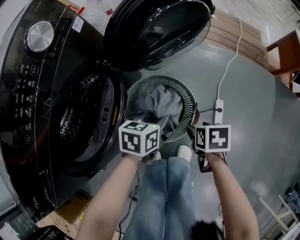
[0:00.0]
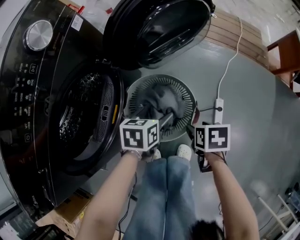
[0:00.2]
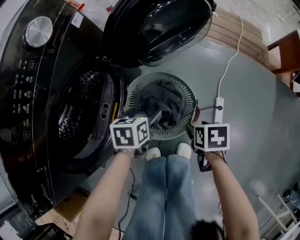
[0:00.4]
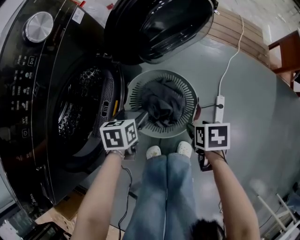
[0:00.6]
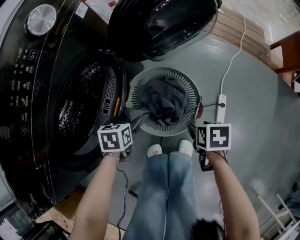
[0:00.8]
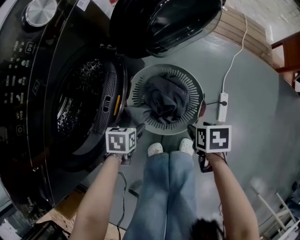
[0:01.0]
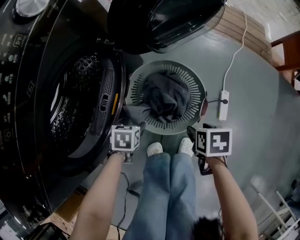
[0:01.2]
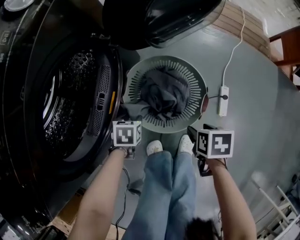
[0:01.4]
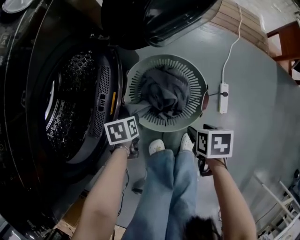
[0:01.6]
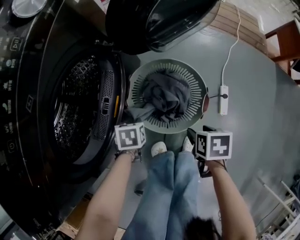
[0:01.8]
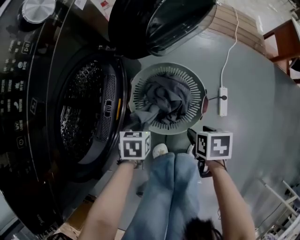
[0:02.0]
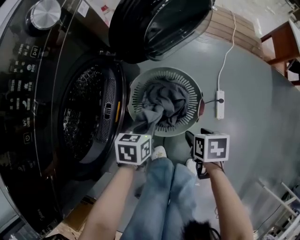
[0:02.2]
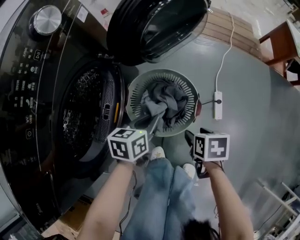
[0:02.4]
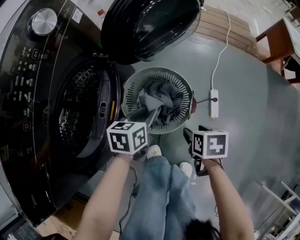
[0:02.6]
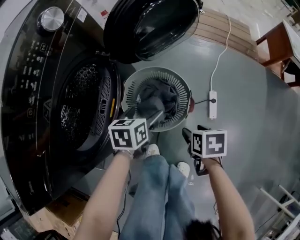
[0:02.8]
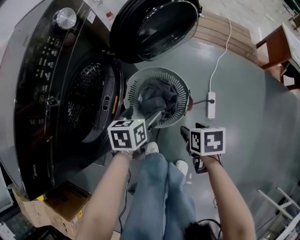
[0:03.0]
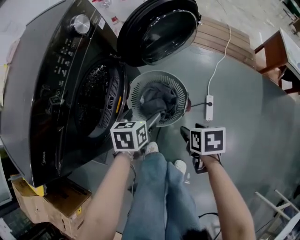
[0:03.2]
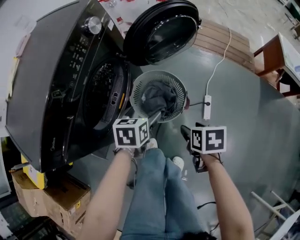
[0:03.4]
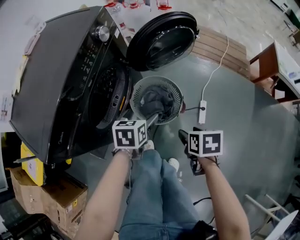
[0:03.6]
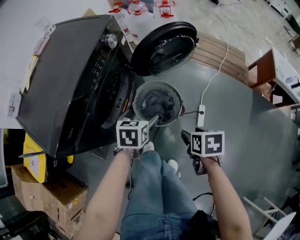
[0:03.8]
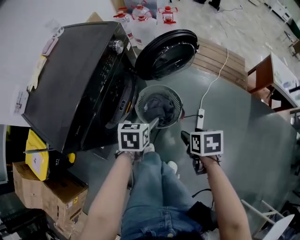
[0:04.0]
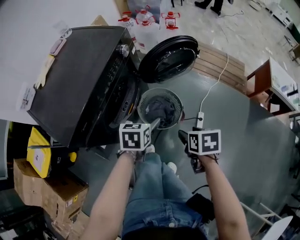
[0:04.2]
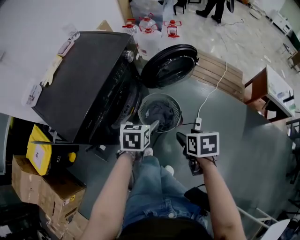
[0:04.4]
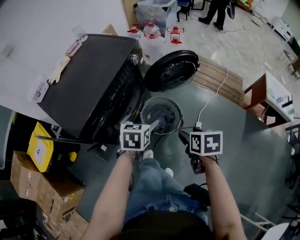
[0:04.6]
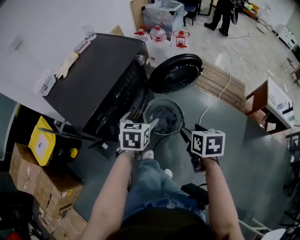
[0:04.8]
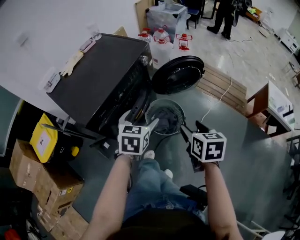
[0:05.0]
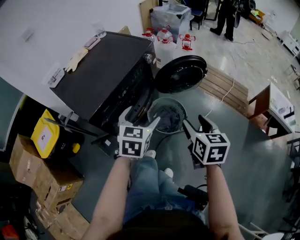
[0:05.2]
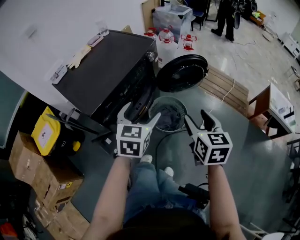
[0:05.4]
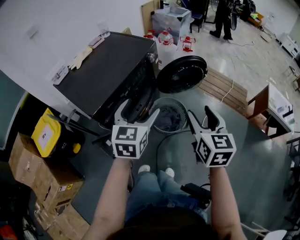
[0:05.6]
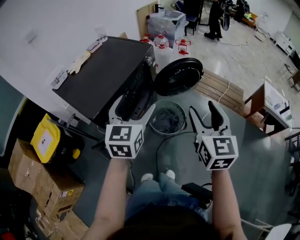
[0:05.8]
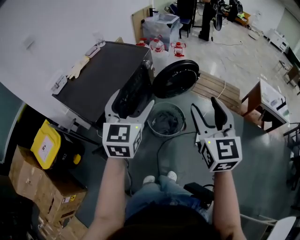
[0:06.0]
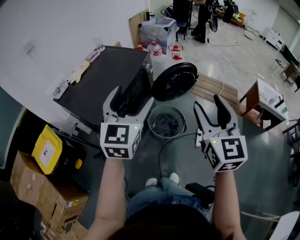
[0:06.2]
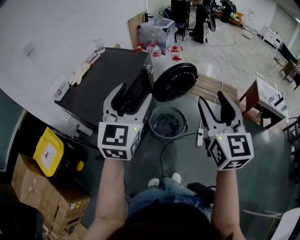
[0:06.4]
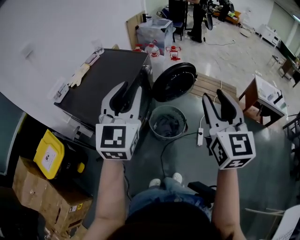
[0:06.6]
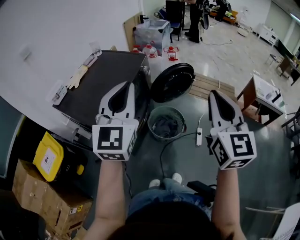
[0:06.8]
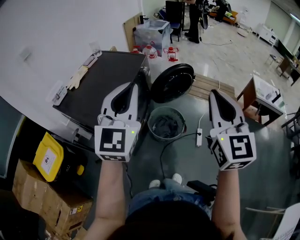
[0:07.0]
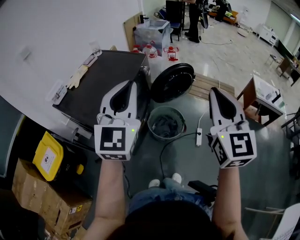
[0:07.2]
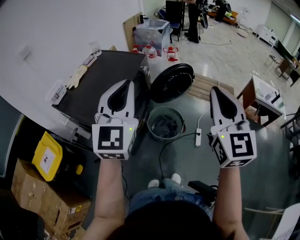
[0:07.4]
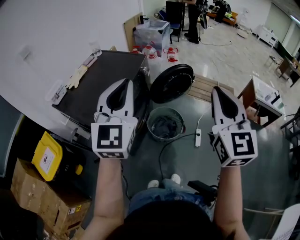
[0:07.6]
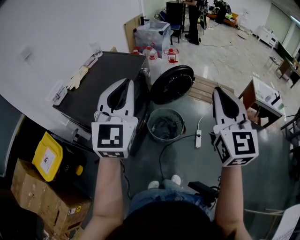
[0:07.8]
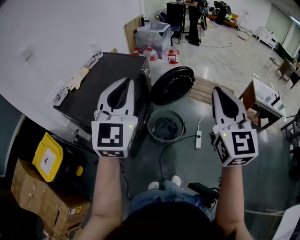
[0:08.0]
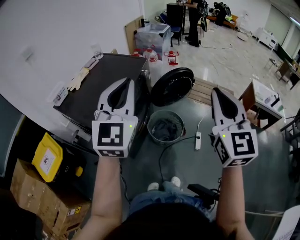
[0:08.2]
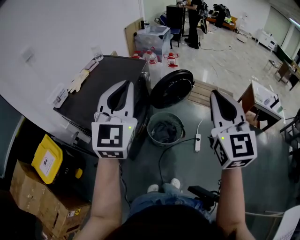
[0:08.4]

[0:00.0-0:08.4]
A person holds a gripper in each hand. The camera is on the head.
0:00.0 to 0:01.4: The right gripper travels downward and backward by approximately 5 cm, while the left gripper heads to the left and downward, covering roughly 25 cm, swivels approximately 30 degrees, and opens and closes again.
0:01.4 to 0:02.8: The left gripper shifts some 15 cm upward, turns by roughly 20 degrees, and opens. Meanwhile the right gripper is displaced upward by some 5 cm.
0:02.8 to 0:04.2: Both grippers travel together upward, approximately 25 cm.
0:04.2 to 0:05.6: The right gripper heads upward, covering approximately 25 cm, and tips its fingers upward by some 40 degrees. Meanwhile the left gripper is displaced upward and backward by some 25 cm, and points its fingers roughly 30 degrees further upward.
0:05.6 to 0:07.0: Both grippers move upward, about 15 cm. The right gripper turns by roughly 30 degrees, and closes; the left gripper swivels approximately 30 degrees, and closes.
0:07.0 to 0:08.4: The grippers stay close to where they were, moving slightly.

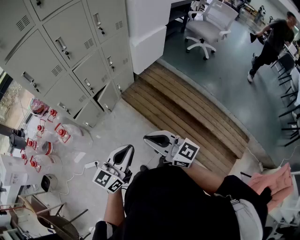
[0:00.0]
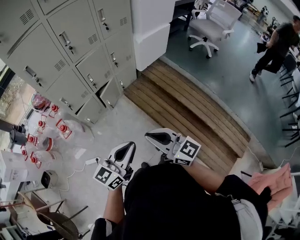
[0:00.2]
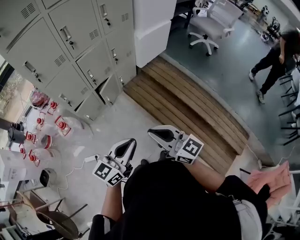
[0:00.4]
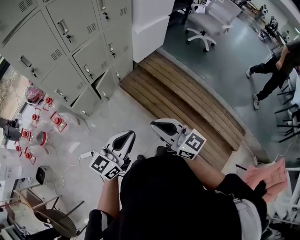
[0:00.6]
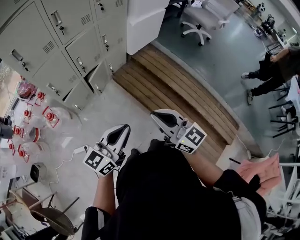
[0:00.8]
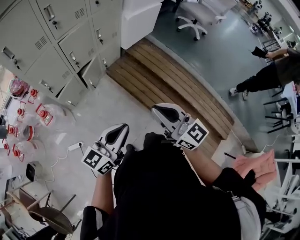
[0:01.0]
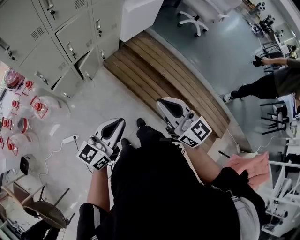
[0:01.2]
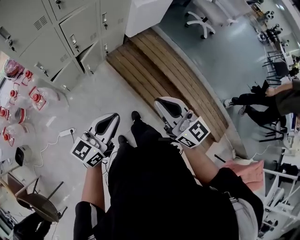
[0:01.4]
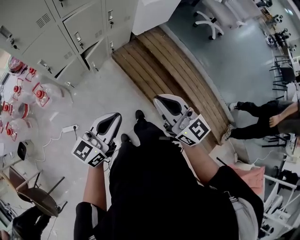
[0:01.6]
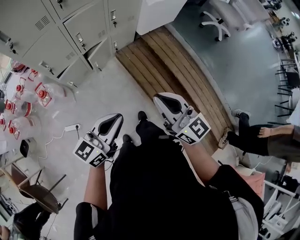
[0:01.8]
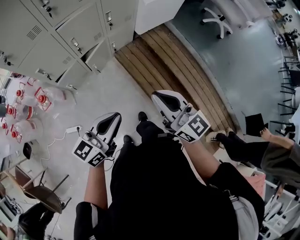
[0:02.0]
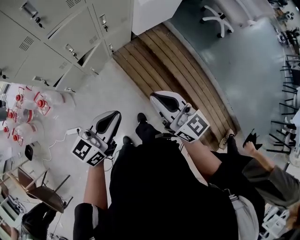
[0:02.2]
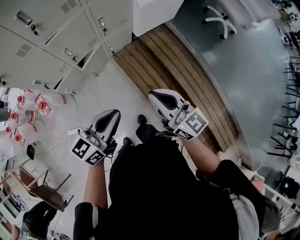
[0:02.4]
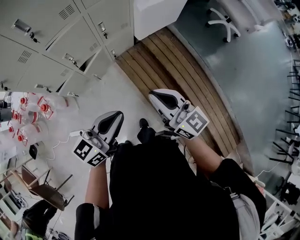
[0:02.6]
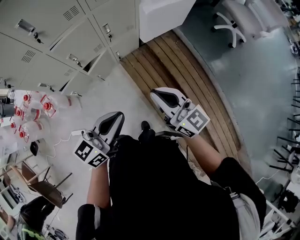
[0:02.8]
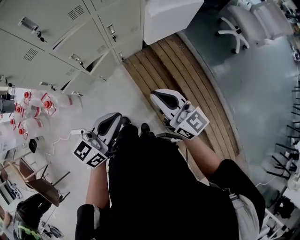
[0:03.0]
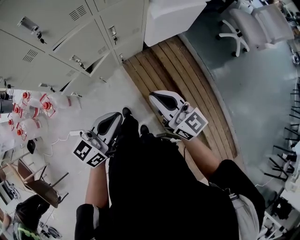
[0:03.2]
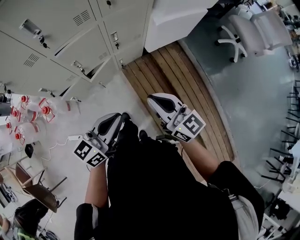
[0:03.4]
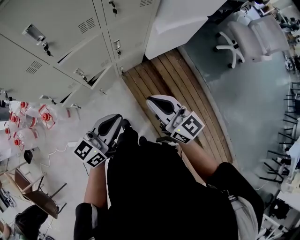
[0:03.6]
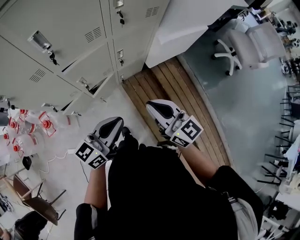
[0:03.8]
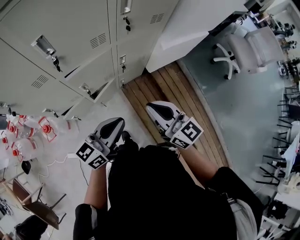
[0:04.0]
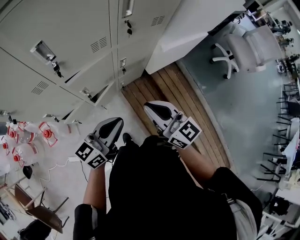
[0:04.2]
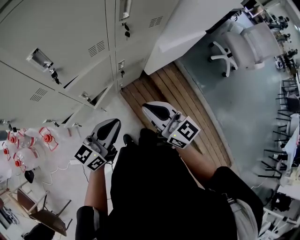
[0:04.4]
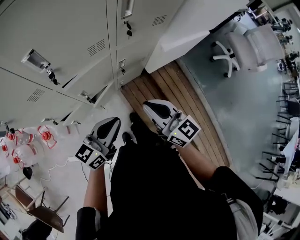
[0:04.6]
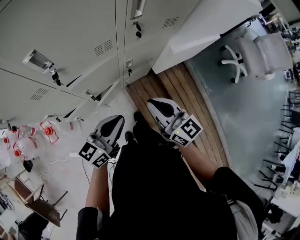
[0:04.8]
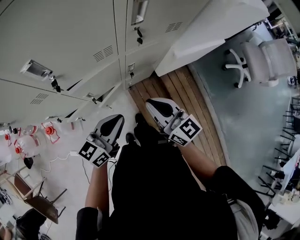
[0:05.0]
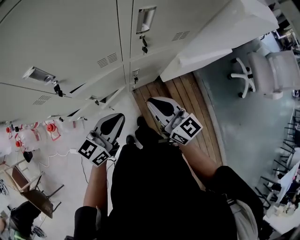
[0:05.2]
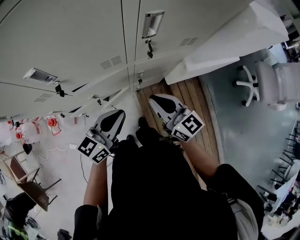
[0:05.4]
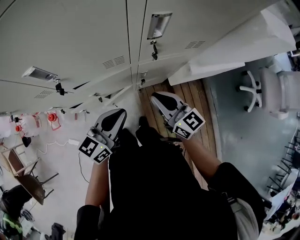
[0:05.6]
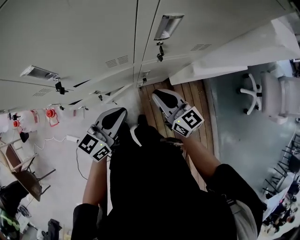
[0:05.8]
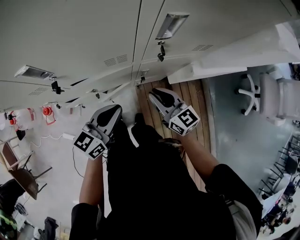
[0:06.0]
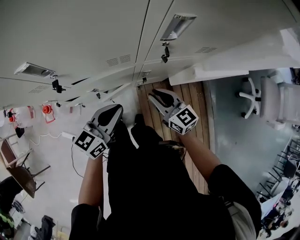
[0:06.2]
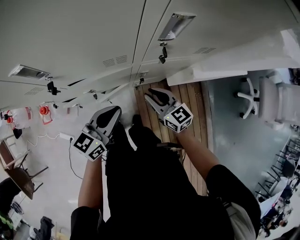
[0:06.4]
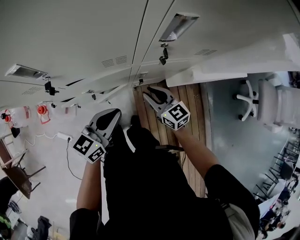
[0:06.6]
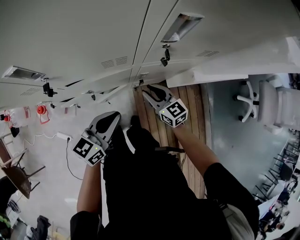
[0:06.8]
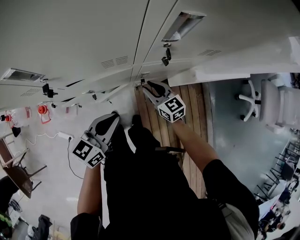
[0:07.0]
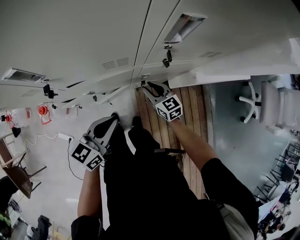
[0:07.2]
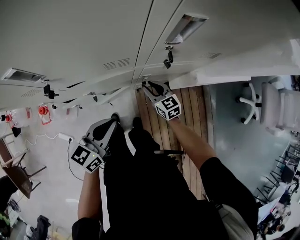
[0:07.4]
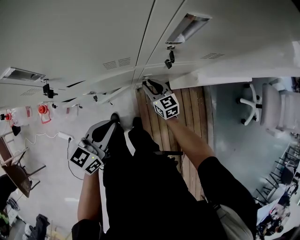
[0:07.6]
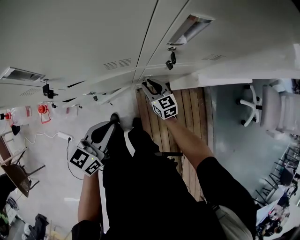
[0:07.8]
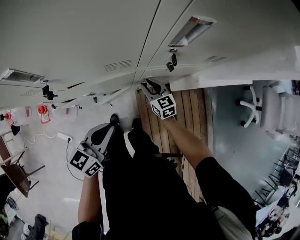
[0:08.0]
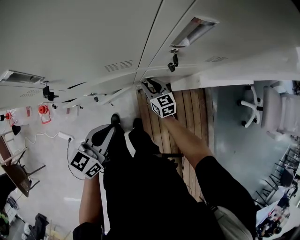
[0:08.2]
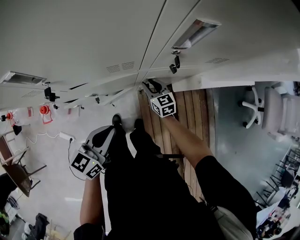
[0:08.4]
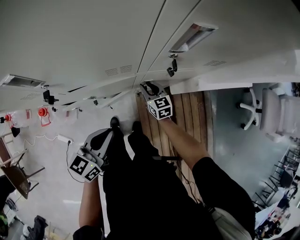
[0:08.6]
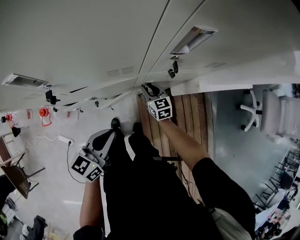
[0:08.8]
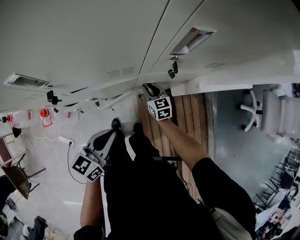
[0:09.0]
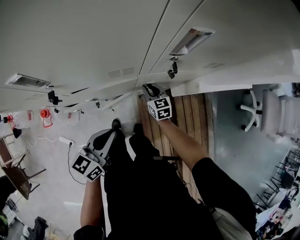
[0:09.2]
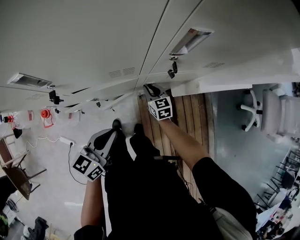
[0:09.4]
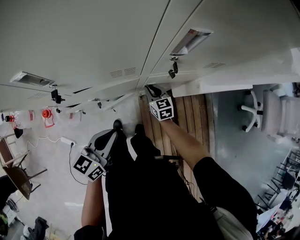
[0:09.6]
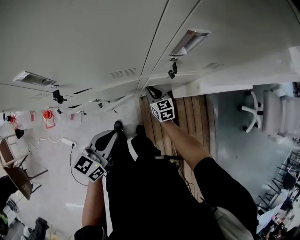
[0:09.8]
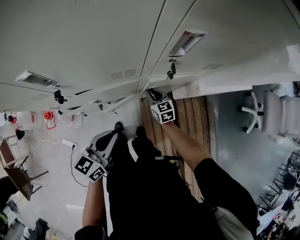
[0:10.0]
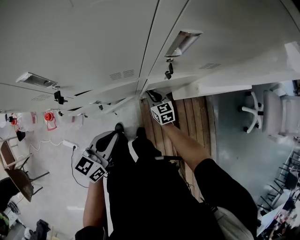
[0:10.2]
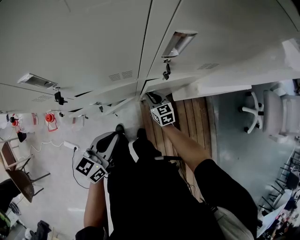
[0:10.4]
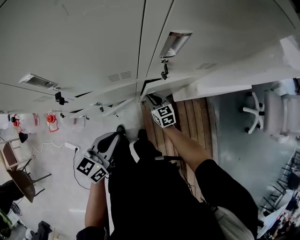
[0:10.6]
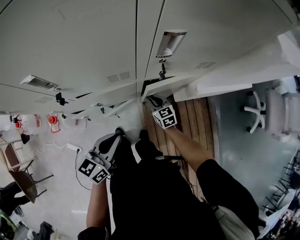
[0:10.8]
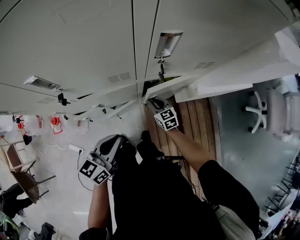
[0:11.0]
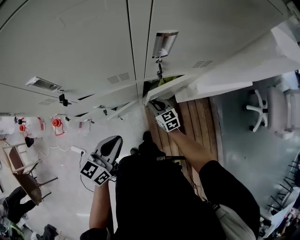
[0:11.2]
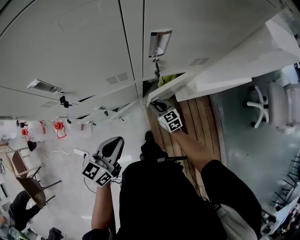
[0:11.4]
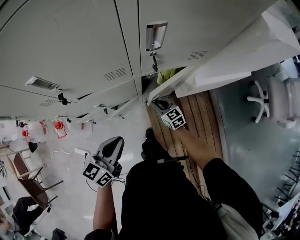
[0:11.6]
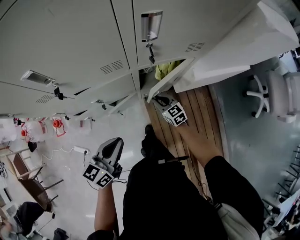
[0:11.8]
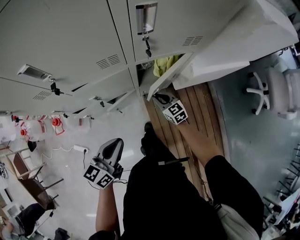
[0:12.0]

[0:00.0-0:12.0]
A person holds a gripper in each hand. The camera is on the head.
0:00.0 to 0:01.6: The two grippers go approximately 10 cm forward.
0:01.6 to 0:03.0: Both grippers travel together forward and to the right, roughly 25 cm.
0:03.0 to 0:04.4: The two grippers go roughly 25 cm forward and to the left.
0:04.4 to 0:06.0: The right gripper shifts about 25 cm forward and downward, while the left gripper heads forward, covering approximately 15 cm, and rotates about 20 degrees.
0:06.0 to 0:07.6: The left gripper moves approximately 5 cm. The right gripper travels downward and forward by roughly 20 cm.
0:07.6 to 0:10.4: The grippers make only small movements.
0:10.4 to 0:12.0: Both grippers travel together backward, approximately 10 cm.

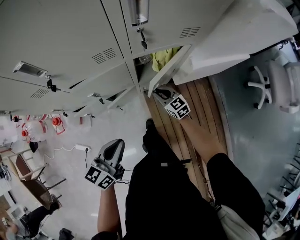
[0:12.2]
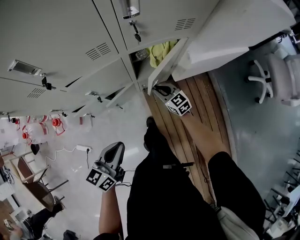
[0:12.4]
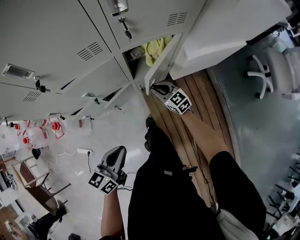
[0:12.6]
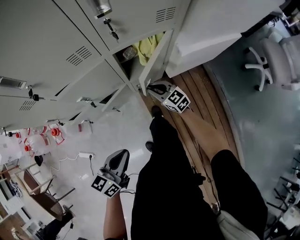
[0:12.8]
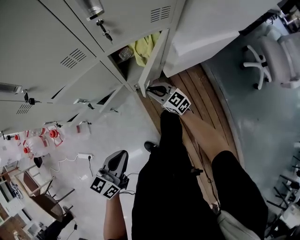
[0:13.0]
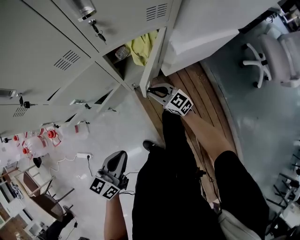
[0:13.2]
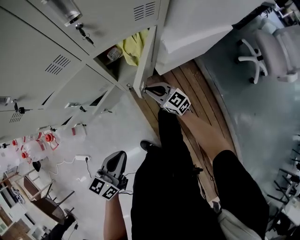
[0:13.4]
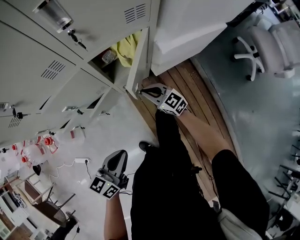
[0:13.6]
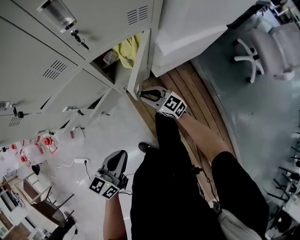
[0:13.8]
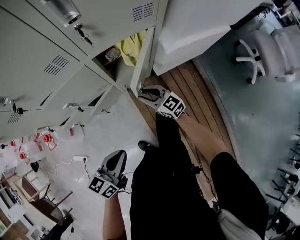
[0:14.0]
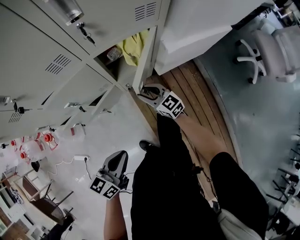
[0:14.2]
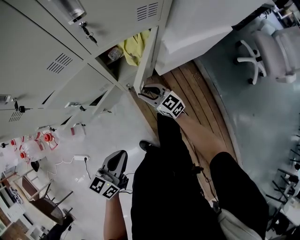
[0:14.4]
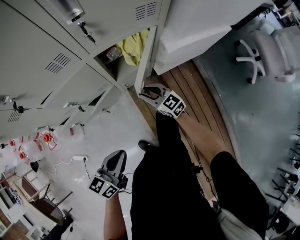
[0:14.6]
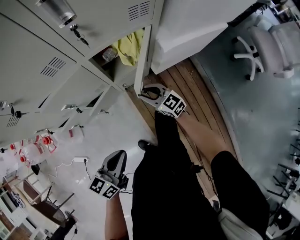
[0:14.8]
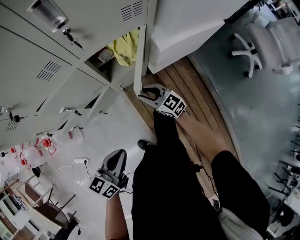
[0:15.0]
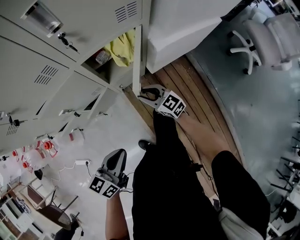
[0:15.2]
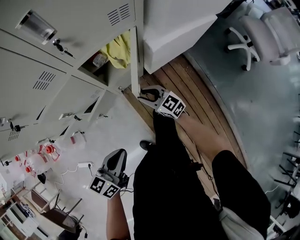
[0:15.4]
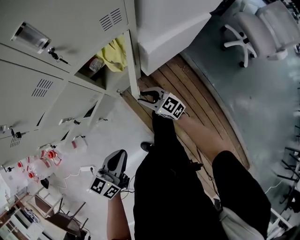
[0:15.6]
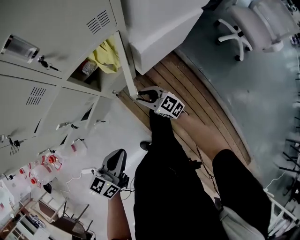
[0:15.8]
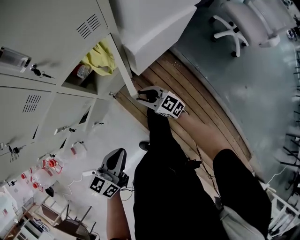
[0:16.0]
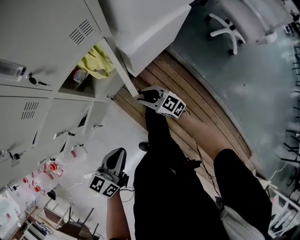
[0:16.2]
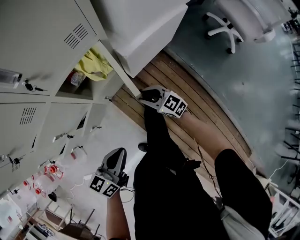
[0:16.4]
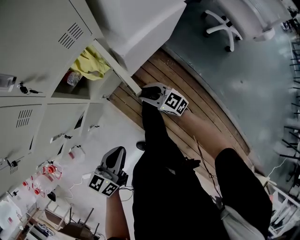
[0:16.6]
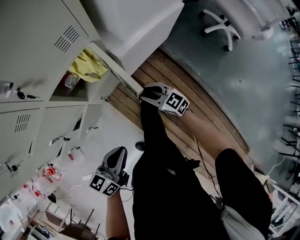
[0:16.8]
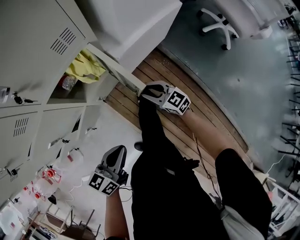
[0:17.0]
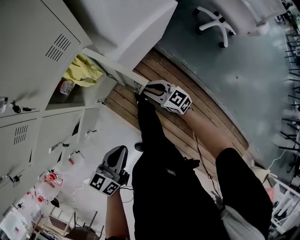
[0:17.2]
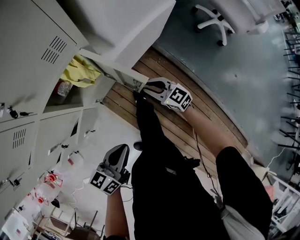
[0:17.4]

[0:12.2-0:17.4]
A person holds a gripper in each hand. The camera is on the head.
0:12.2 to 0:14.0: The right gripper travels backward by roughly 5 cm; the left gripper moves to the right, downward and backward, some 10 cm.
0:14.0 to 0:15.6: The right gripper travels to the right by about 5 cm.
0:15.6 to 0:17.4: The right gripper travels to the right by some 15 cm. The left gripper heads to the right and forward, covering approximately 15 cm.
